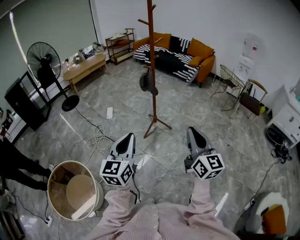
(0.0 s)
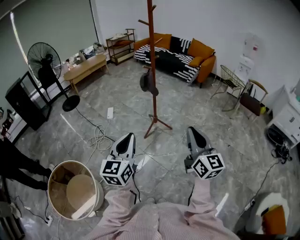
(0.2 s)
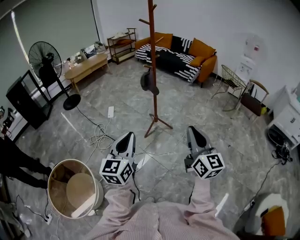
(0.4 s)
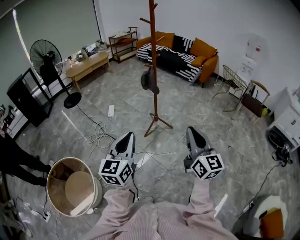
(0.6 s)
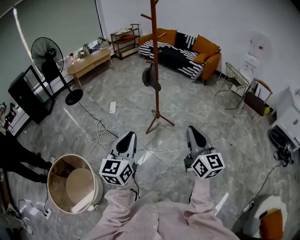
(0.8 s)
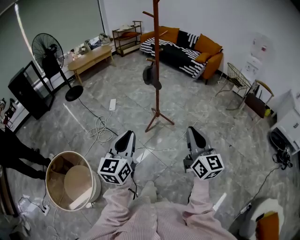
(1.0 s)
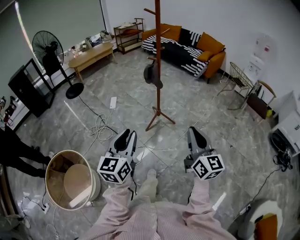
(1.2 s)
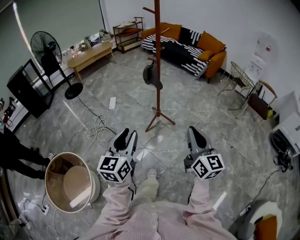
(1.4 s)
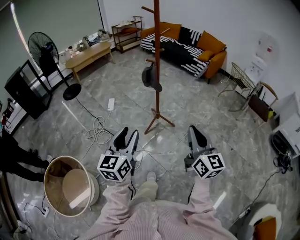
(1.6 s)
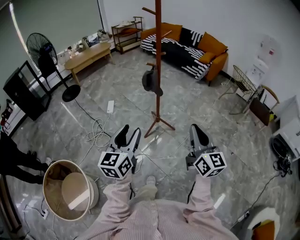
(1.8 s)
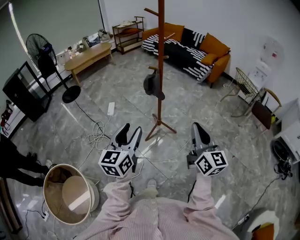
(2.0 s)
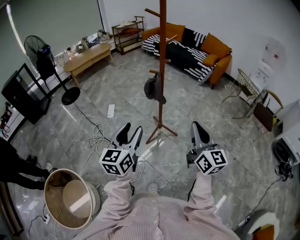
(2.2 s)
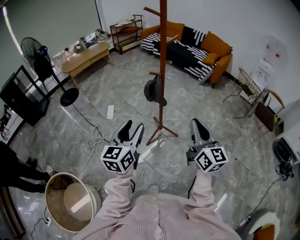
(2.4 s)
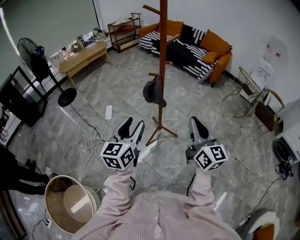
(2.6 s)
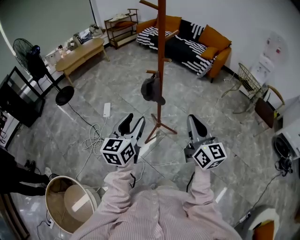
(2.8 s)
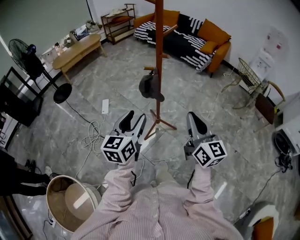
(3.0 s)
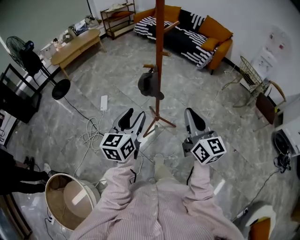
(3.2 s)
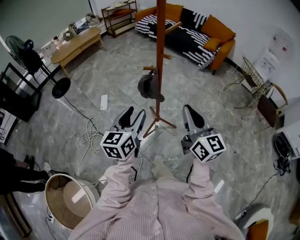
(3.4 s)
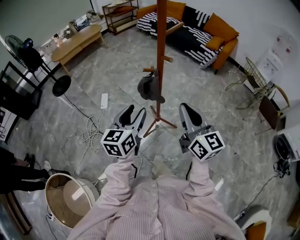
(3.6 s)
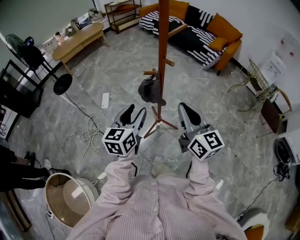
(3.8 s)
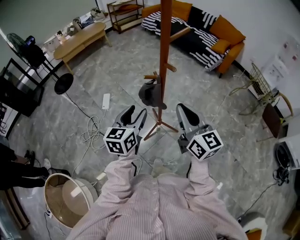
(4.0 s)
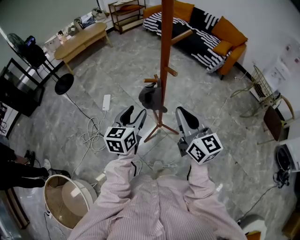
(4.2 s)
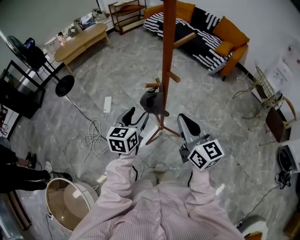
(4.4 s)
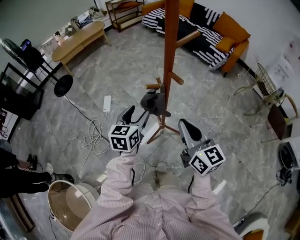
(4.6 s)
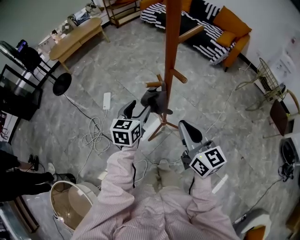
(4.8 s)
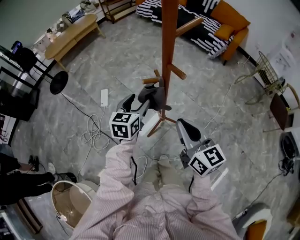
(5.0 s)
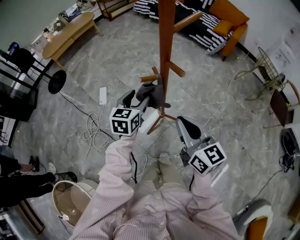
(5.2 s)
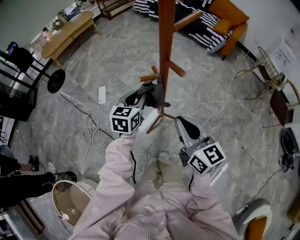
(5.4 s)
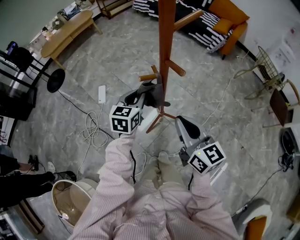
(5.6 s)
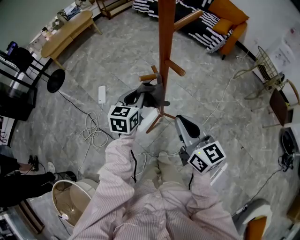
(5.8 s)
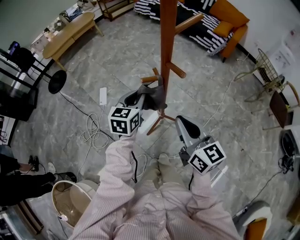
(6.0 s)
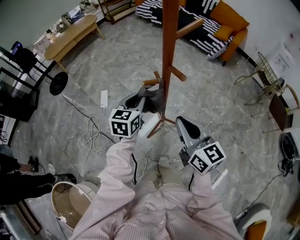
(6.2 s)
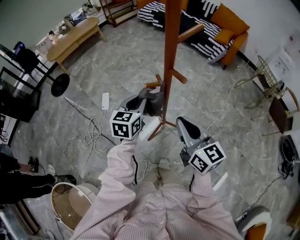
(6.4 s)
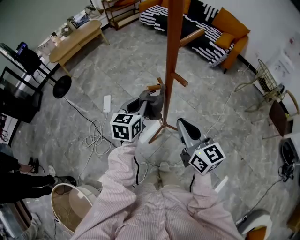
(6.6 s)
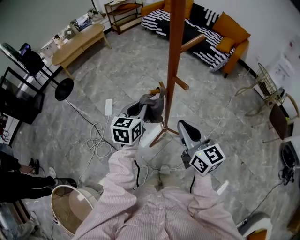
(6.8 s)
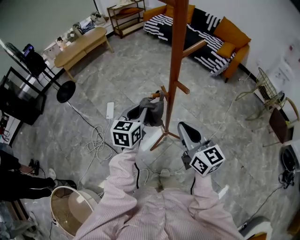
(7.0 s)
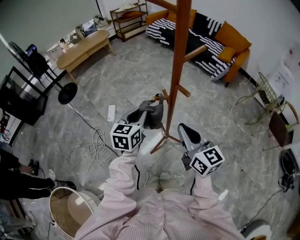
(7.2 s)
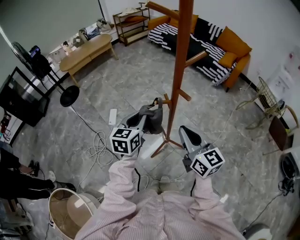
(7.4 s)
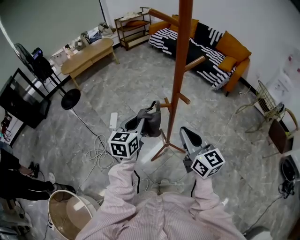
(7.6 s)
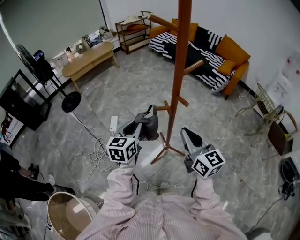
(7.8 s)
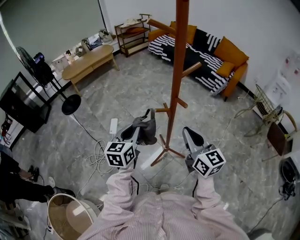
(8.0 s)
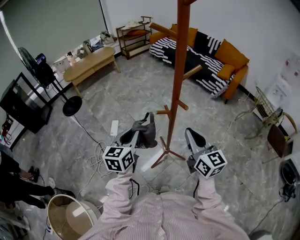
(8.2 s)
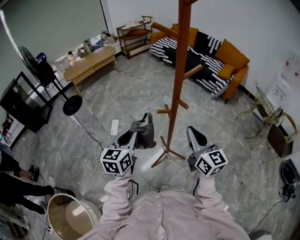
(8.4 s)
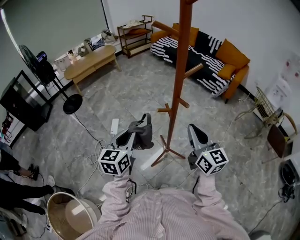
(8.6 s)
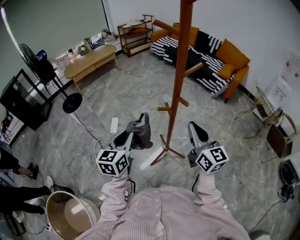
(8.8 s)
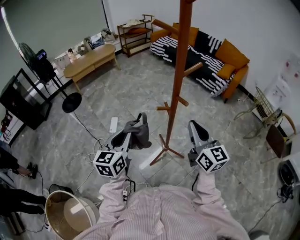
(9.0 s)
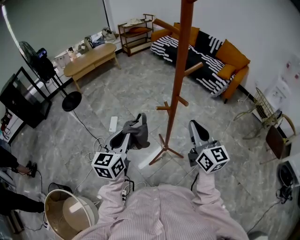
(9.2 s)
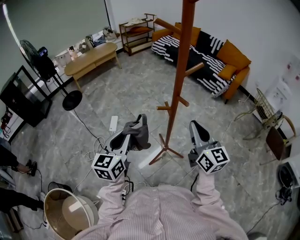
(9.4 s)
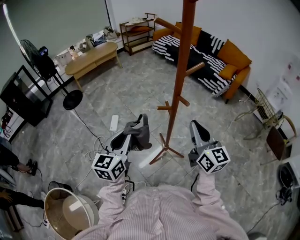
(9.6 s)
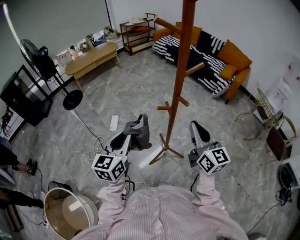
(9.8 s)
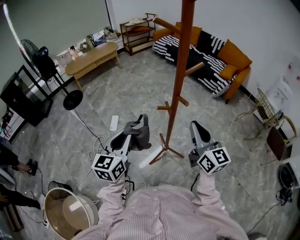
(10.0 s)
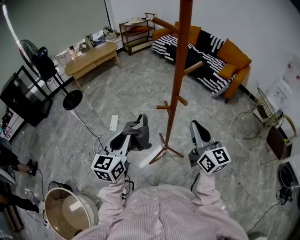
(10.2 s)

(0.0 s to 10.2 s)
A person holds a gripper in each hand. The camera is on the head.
0.0 s - 1.4 s: Both grippers travel together forward, roughly 5 cm. The left gripper opens up.
1.4 s - 3.0 s: Both grippers move forward, about 35 cm.
3.0 s - 4.4 s: The two grippers go approximately 20 cm forward.
4.4 s - 5.8 s: The right gripper is displaced downward by some 5 cm. The left gripper is displaced forward and downward by about 10 cm, and closes.
5.8 s - 7.2 s: The left gripper travels upward by roughly 5 cm.
7.2 s - 8.8 s: The left gripper heads backward, to the left and upward, covering about 10 cm; the right gripper goes roughly 5 cm upward.
8.8 s - 10.2 s: The grippers move only a little.

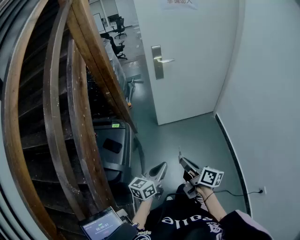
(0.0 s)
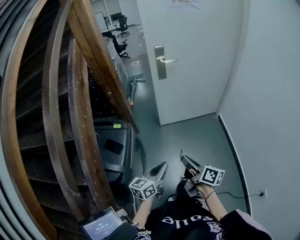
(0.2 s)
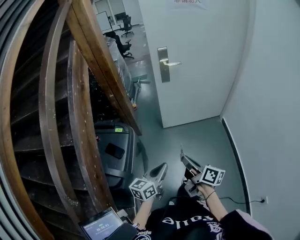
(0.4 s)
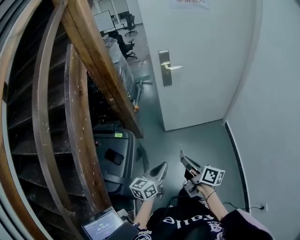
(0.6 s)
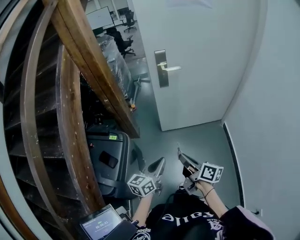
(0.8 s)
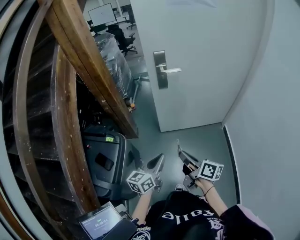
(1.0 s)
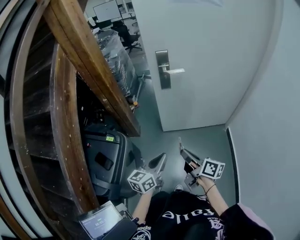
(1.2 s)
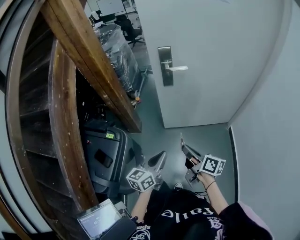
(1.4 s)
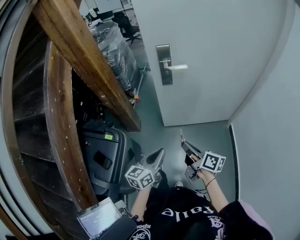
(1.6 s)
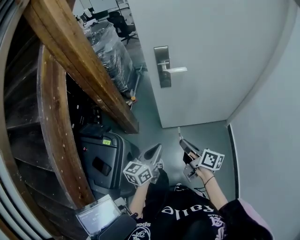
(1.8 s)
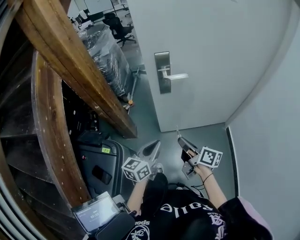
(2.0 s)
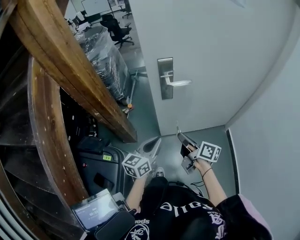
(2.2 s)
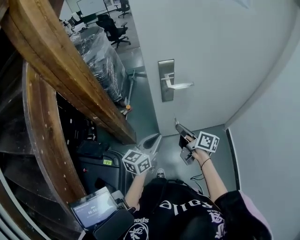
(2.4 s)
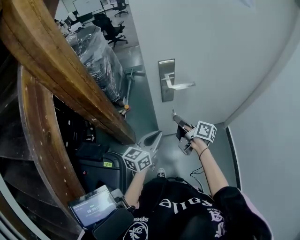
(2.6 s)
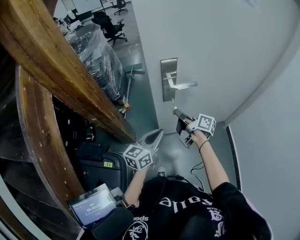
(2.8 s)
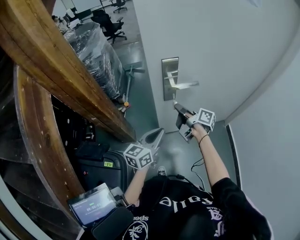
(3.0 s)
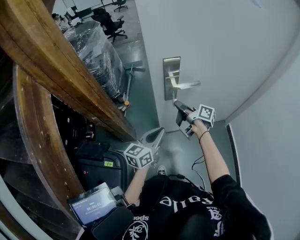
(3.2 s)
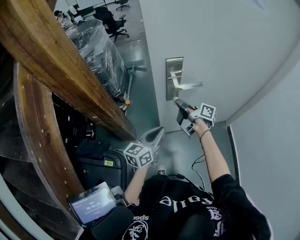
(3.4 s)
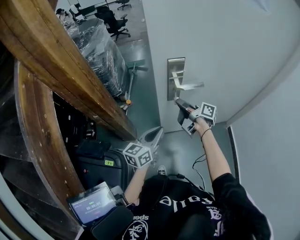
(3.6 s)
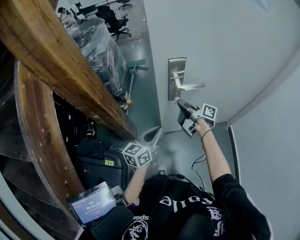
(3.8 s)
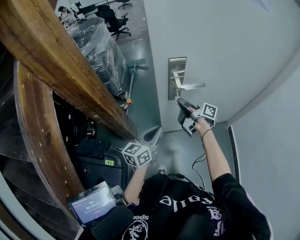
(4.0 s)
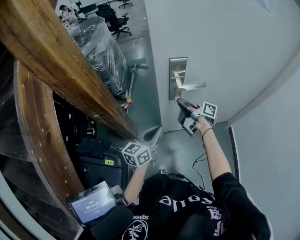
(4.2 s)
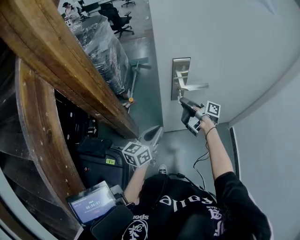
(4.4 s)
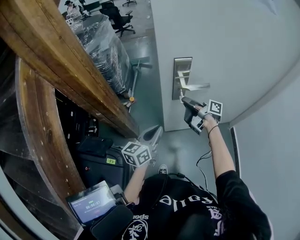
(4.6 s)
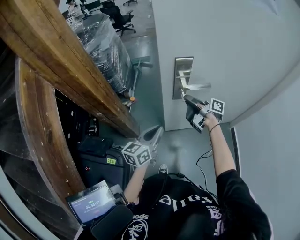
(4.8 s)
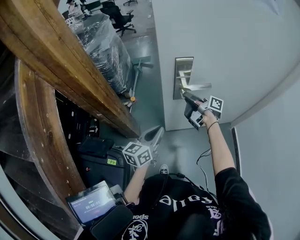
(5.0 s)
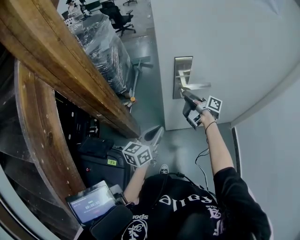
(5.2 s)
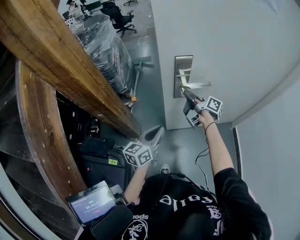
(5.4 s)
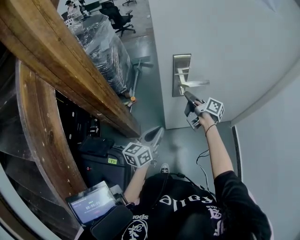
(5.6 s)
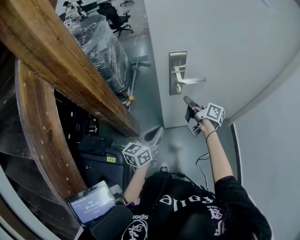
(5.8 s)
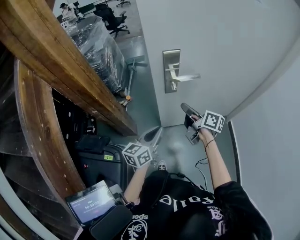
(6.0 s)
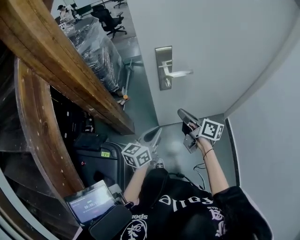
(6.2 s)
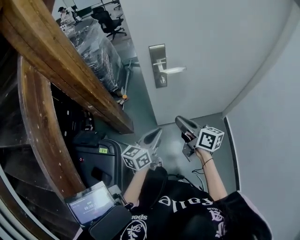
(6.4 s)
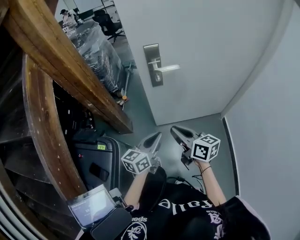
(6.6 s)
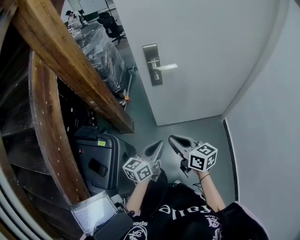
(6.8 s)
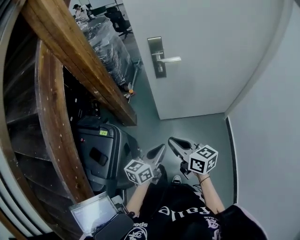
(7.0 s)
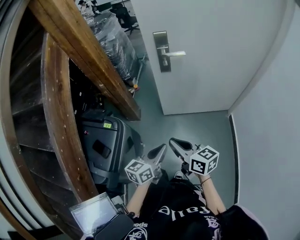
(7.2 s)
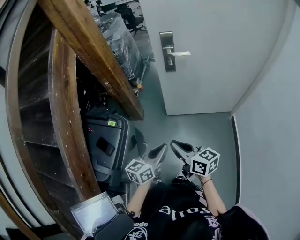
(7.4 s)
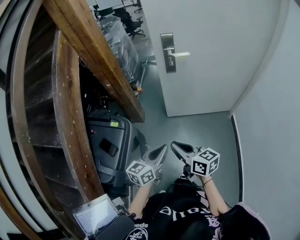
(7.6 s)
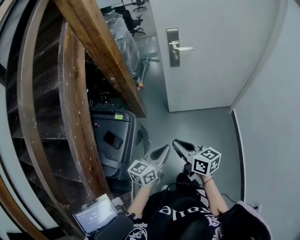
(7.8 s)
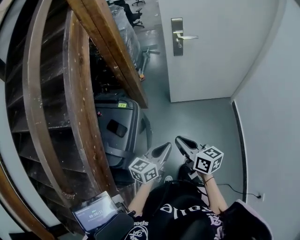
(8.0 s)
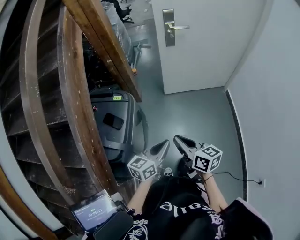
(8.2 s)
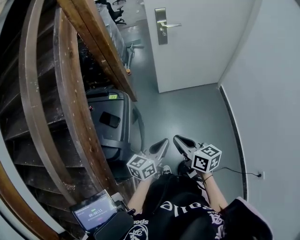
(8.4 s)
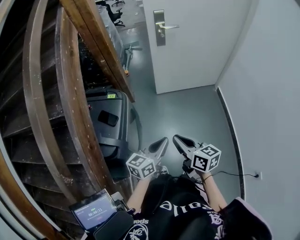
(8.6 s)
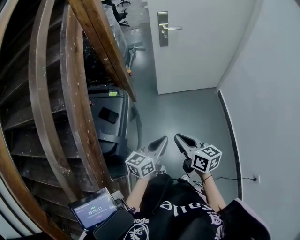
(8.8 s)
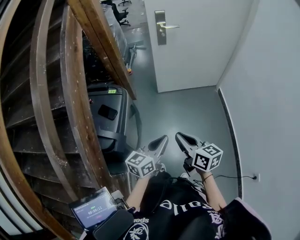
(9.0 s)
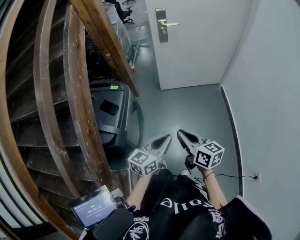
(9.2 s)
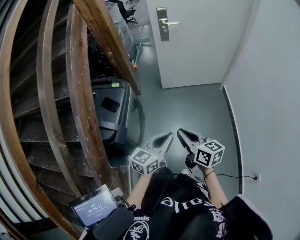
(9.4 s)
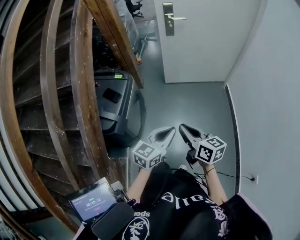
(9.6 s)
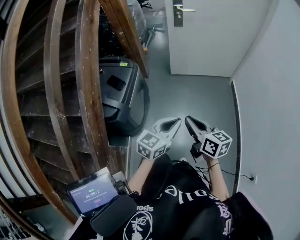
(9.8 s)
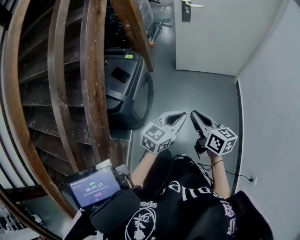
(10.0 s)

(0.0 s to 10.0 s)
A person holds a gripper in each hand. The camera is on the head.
0.0 s - 1.4 s: The two grippers go roughly 30 cm forward.
1.4 s - 2.8 s: Both grippers move forward, some 30 cm.
2.8 s - 4.2 s: The right gripper is displaced forward by some 5 cm.
4.2 s - 5.8 s: The grippers stay close to where they were, moving slightly.
5.8 s - 7.2 s: Both grippers move backward, about 35 cm. The right gripper swivels some 40 degrees.
7.2 s - 8.6 s: The right gripper is displaced backward by some 25 cm. The left gripper travels backward and to the left by some 25 cm.
8.6 s - 10.0 s: The two grippers go roughly 15 cm to the right and backward.

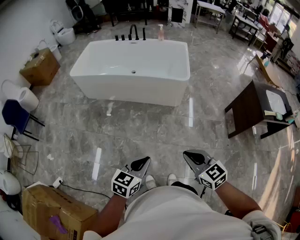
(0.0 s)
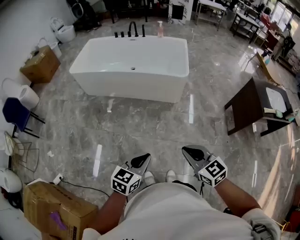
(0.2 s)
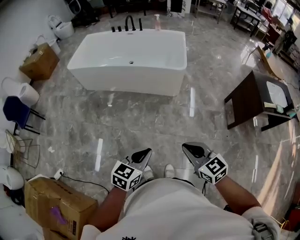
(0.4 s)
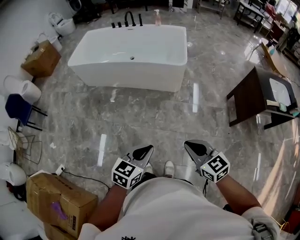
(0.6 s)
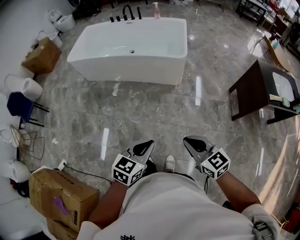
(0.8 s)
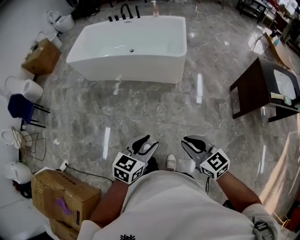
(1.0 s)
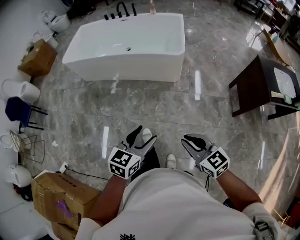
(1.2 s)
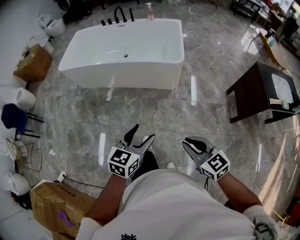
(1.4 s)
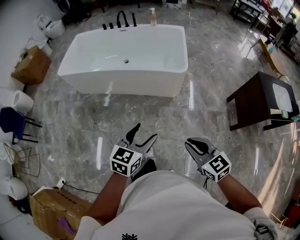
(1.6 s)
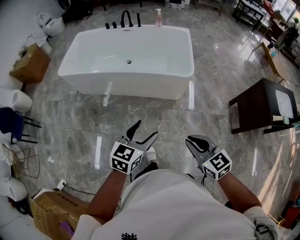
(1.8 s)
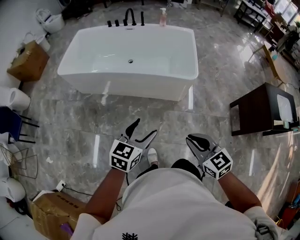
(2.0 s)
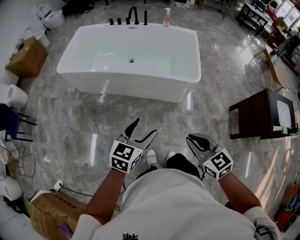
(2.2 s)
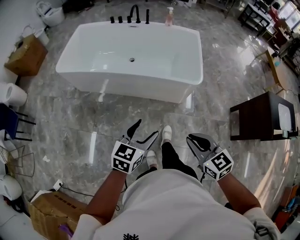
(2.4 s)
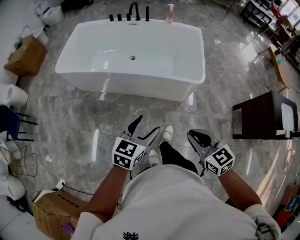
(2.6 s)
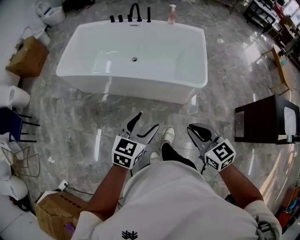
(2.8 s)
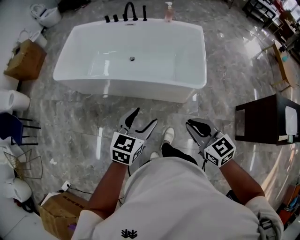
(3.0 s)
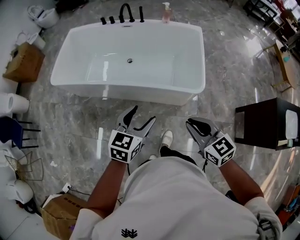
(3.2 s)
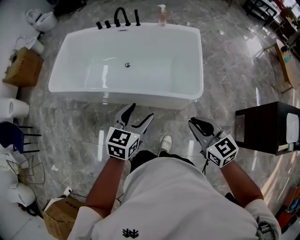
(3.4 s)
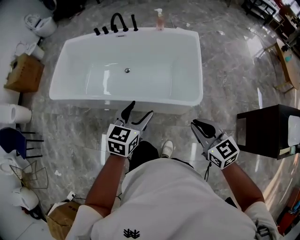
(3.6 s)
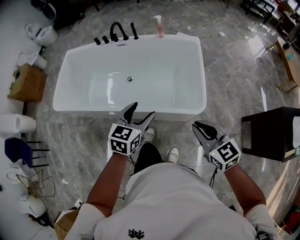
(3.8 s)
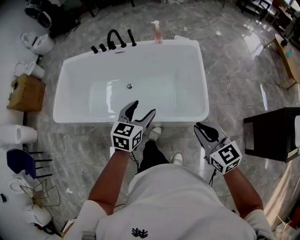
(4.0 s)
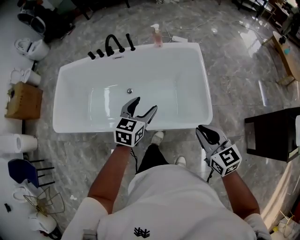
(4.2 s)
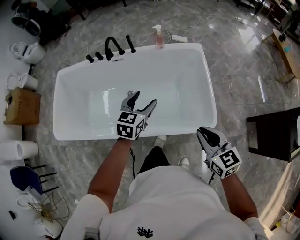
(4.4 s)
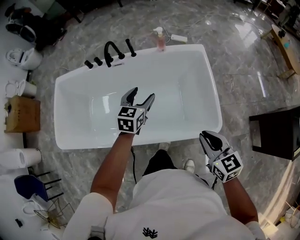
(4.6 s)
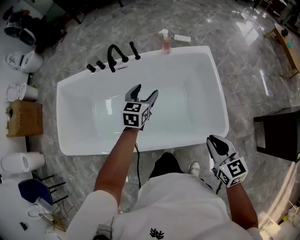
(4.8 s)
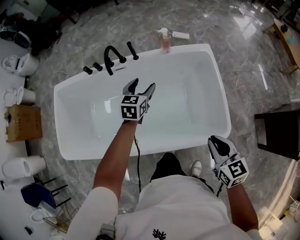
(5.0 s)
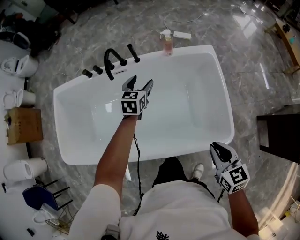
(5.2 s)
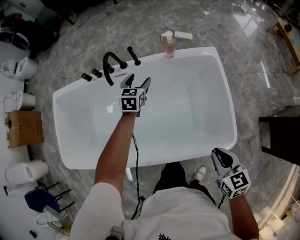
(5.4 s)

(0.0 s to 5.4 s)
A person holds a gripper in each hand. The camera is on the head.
0.0 s - 1.4 s: The right gripper moves to the right and forward, some 15 cm. Meanwhile the left gripper goes roughly 20 cm forward and to the right, and opens.
1.4 s - 2.8 s: The right gripper heads forward, covering roughly 35 cm, while the left gripper moves forward and to the left, some 35 cm.
2.8 s - 4.0 s: Both grippers travel together forward, approximately 35 cm.
4.0 s - 5.4 s: The right gripper goes approximately 25 cm forward, downward and to the left, and turns by some 30 degrees. Meanwhile the left gripper shifts some 50 cm forward.
